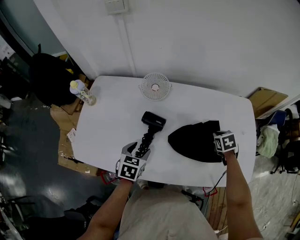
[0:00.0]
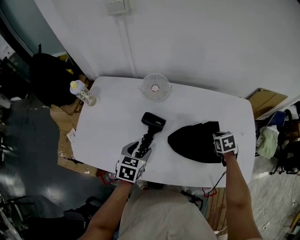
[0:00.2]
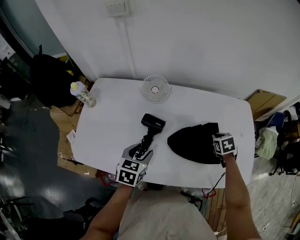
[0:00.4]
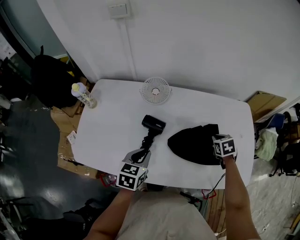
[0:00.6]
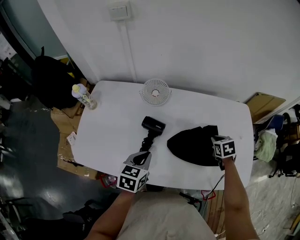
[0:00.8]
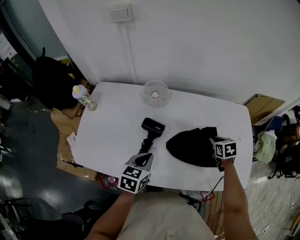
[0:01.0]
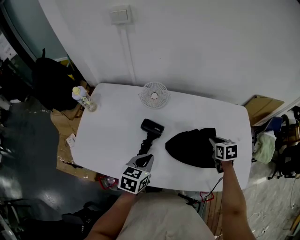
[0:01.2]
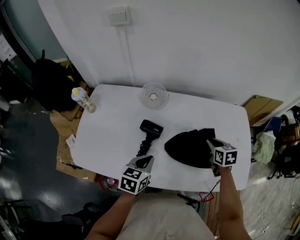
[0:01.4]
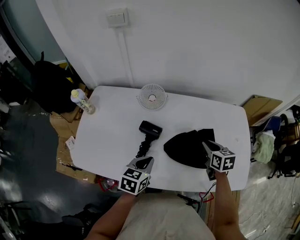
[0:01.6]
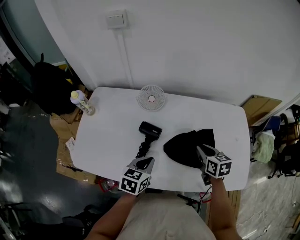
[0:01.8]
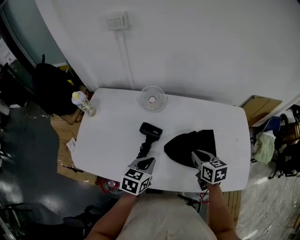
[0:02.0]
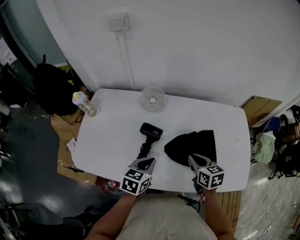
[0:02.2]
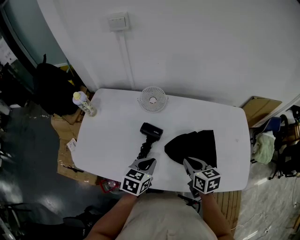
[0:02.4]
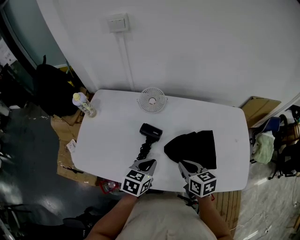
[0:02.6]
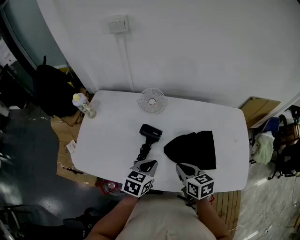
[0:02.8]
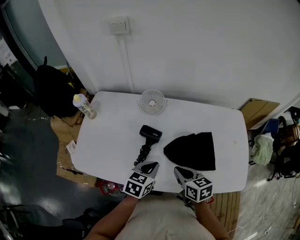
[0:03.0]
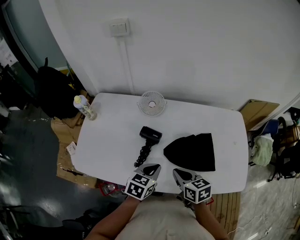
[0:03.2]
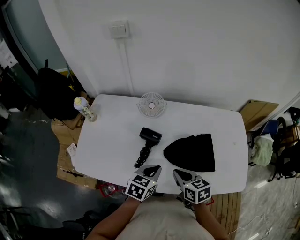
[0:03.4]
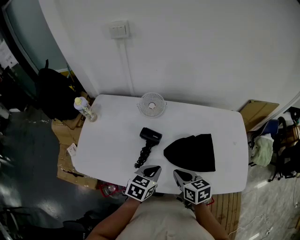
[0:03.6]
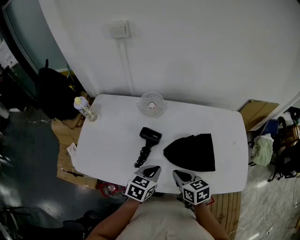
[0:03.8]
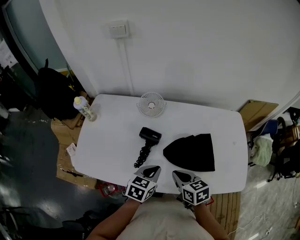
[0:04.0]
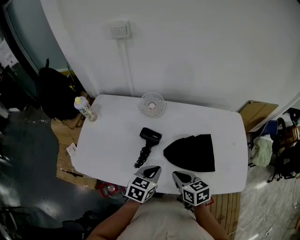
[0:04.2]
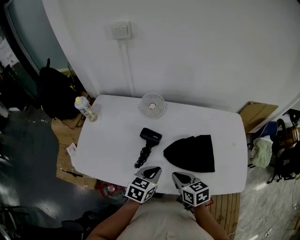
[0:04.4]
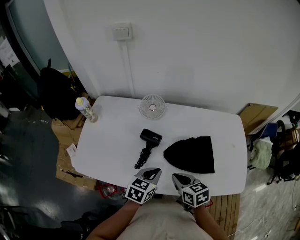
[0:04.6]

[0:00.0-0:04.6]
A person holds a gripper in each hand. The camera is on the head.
0:00.0 to 0:01.6: The left gripper moves upward and to the right, roughly 10 cm, and closes. Meanwhile the right gripper goes about 10 cm upward and to the left, and changes its angle by approximately 30 degrees.
0:01.6 to 0:03.0: The right gripper shifts about 20 cm to the left and backward.
0:03.0 to 0:04.6: The grippers stay close to where they were, moving slightly.

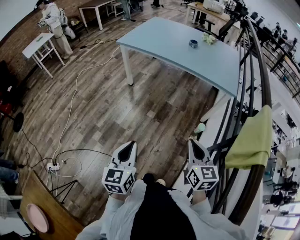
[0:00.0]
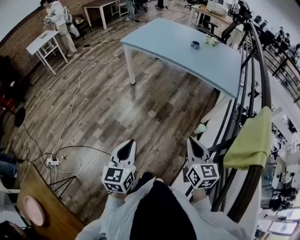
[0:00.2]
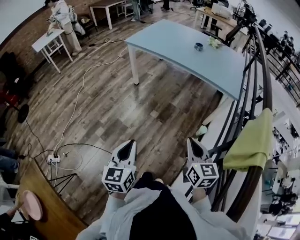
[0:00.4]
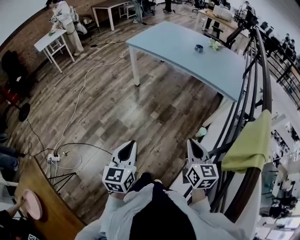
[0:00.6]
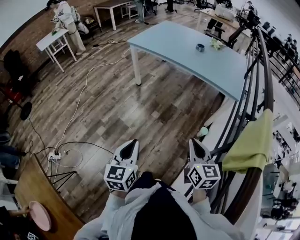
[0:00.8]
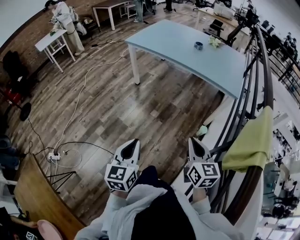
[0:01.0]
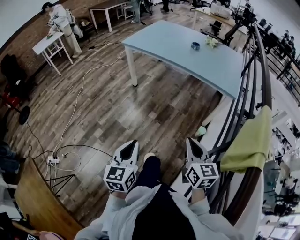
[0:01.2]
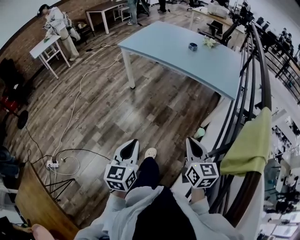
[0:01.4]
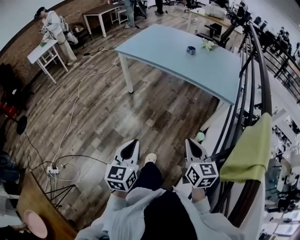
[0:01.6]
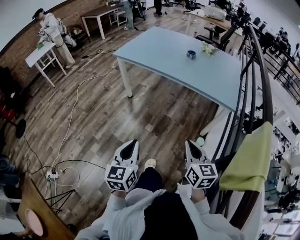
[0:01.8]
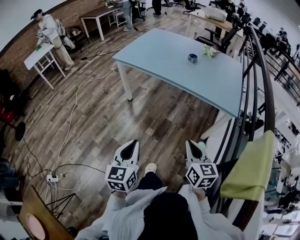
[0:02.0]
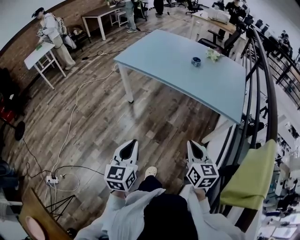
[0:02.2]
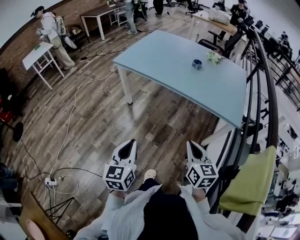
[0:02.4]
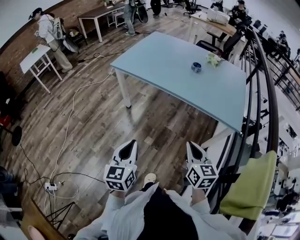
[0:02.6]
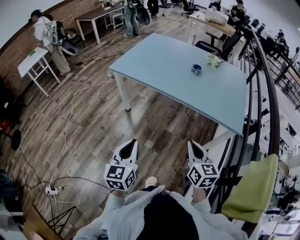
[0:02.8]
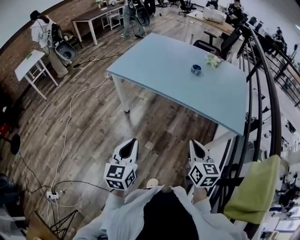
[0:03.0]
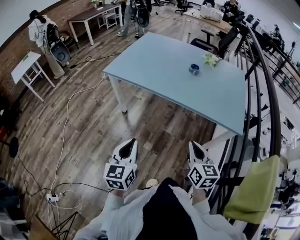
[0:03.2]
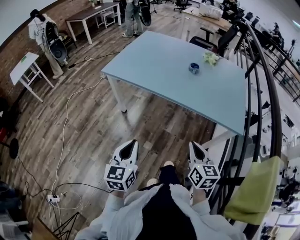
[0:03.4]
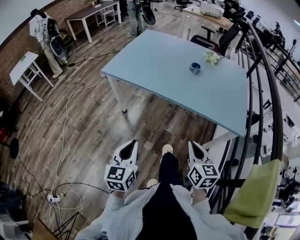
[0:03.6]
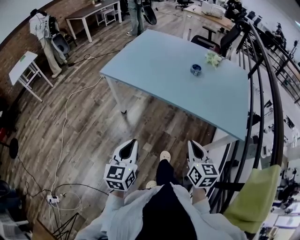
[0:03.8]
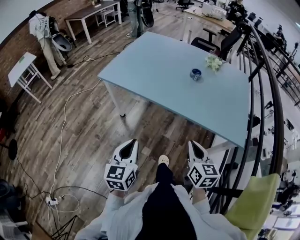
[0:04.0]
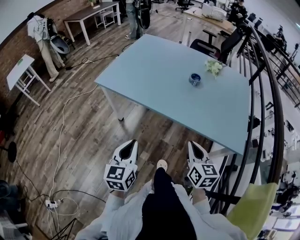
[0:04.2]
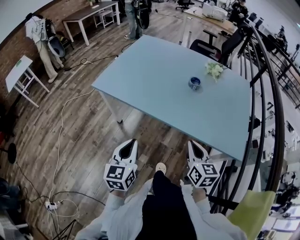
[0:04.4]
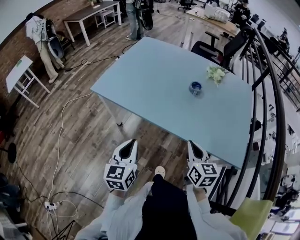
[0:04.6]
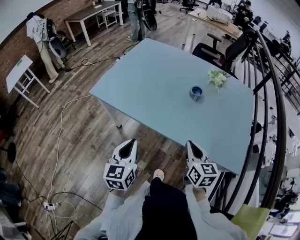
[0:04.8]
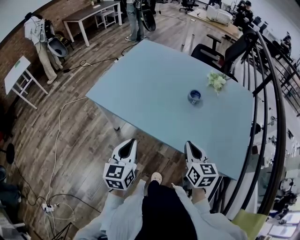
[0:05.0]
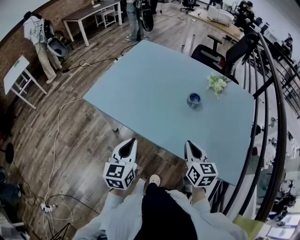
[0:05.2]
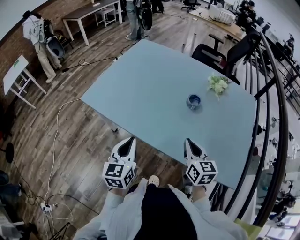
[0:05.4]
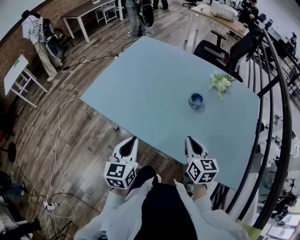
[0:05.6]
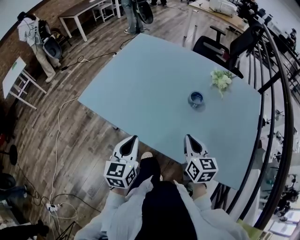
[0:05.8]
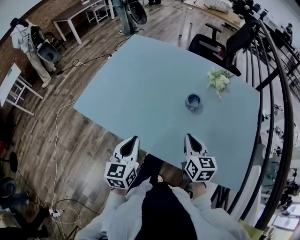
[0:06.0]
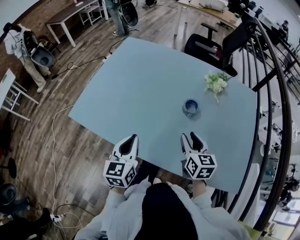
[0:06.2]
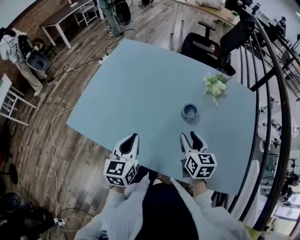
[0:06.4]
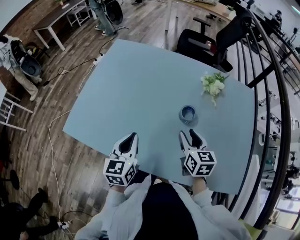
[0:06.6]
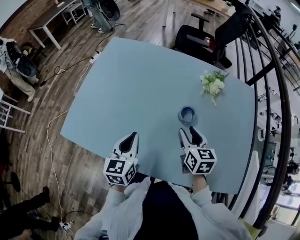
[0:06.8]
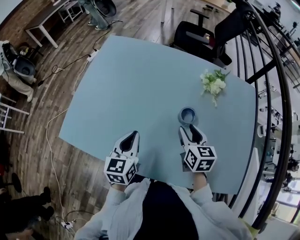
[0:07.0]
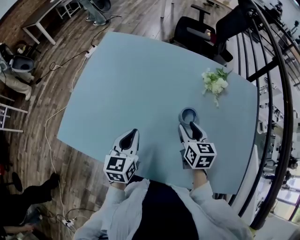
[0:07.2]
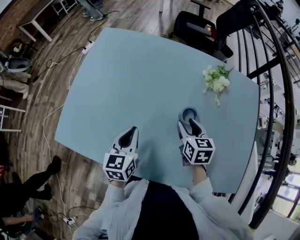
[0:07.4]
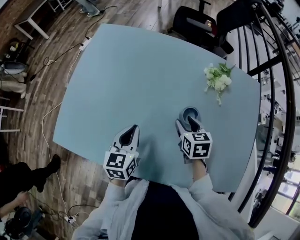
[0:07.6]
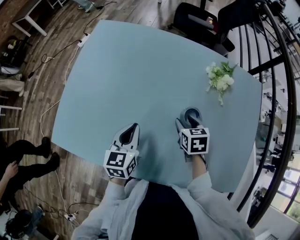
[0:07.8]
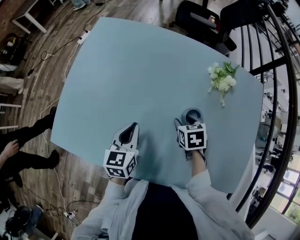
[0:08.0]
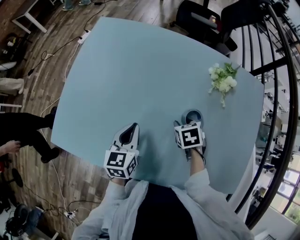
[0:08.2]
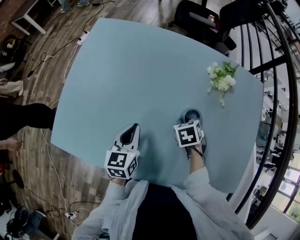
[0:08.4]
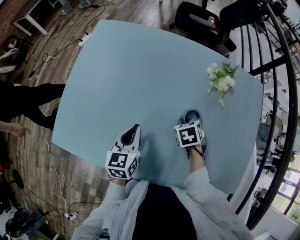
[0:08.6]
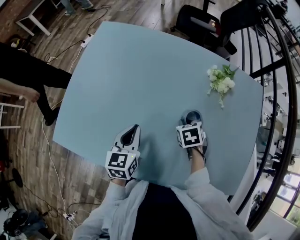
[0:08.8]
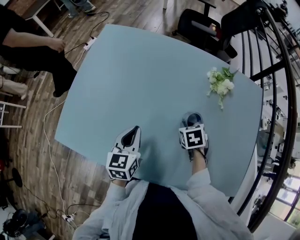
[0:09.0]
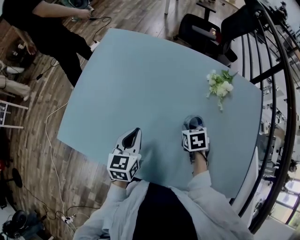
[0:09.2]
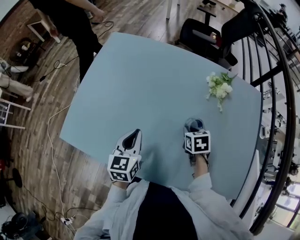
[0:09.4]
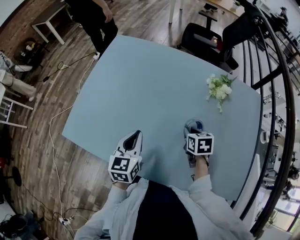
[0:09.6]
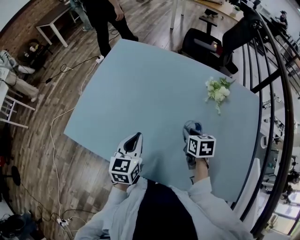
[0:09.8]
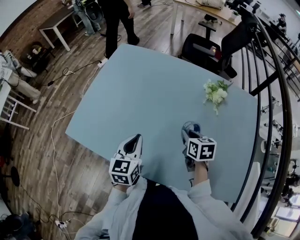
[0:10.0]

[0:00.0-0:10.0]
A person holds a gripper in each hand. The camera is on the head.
0:00.0 to 0:01.4: The left gripper goes about 5 cm to the right.
0:01.4 to 0:02.8: The grippers both shift forward by some 30 cm.
0:02.8 to 0:04.2: The grippers both shift forward by some 15 cm.
0:04.2 to 0:05.8: Both grippers move forward, some 25 cm.
0:05.8 to 0:07.2: Both grippers travel together forward, some 20 cm. The right gripper opens up.
0:07.2 to 0:08.6: The right gripper goes approximately 10 cm downward, angles its fingers downward, by roughly 40 degrees, and closes its fingers, while the left gripper changes place by about 5 cm.
0:08.6 to 0:10.0: The left gripper shifts roughly 10 cm backward and upward. Meanwhile the right gripper goes approximately 10 cm upward and backward, and rotates approximately 30 degrees.

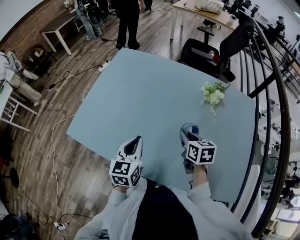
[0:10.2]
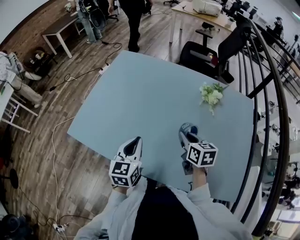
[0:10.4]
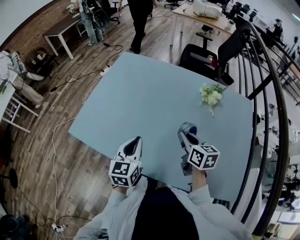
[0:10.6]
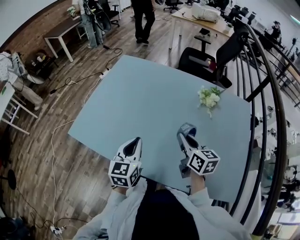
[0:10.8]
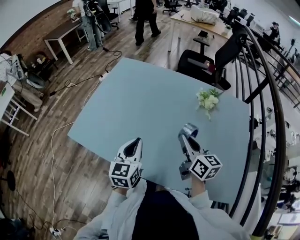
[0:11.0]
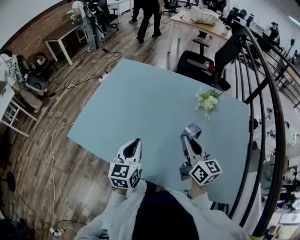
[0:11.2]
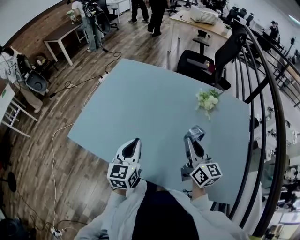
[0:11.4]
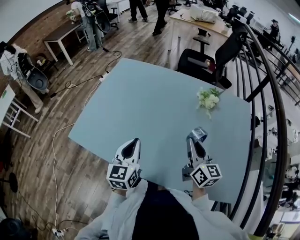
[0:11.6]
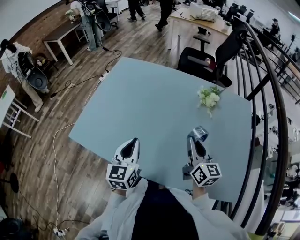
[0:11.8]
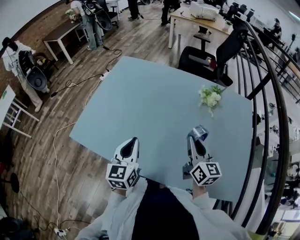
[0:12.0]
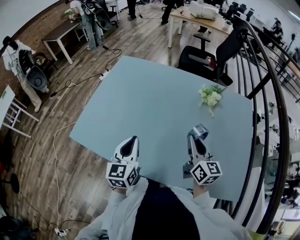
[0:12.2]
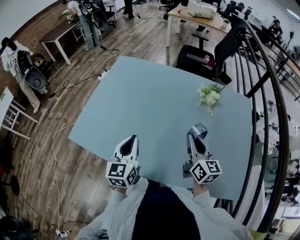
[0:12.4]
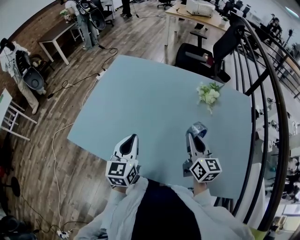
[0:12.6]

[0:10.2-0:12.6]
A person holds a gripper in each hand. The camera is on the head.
0:10.2 to 0:11.4: The right gripper goes about 10 cm upward and backward, and points its fingers approximately 40 degrees further upward.
0:11.4 to 0:12.6: The grippers make only small movements.

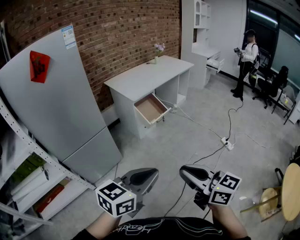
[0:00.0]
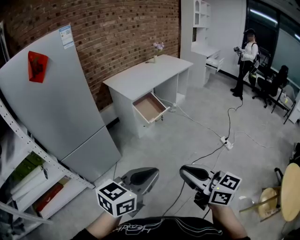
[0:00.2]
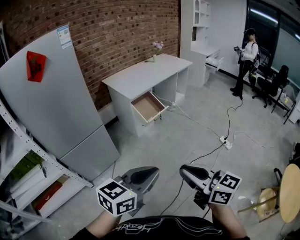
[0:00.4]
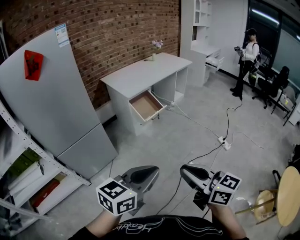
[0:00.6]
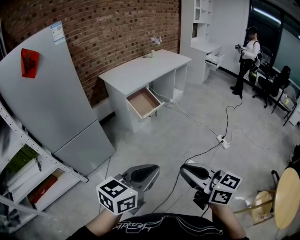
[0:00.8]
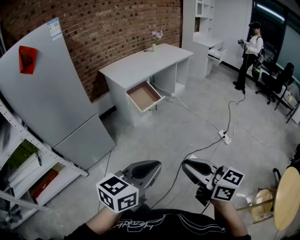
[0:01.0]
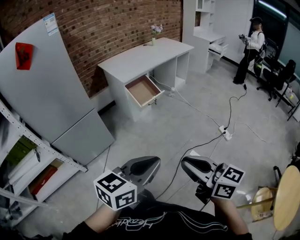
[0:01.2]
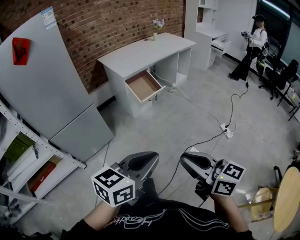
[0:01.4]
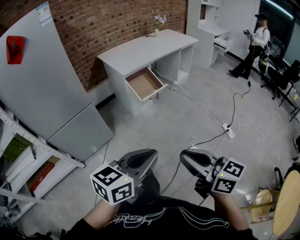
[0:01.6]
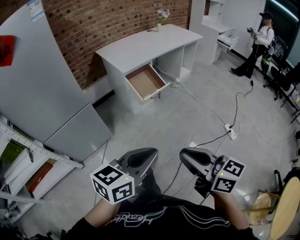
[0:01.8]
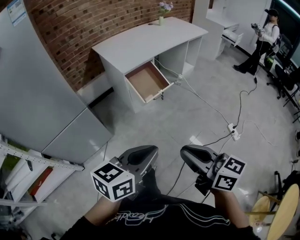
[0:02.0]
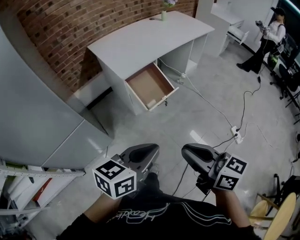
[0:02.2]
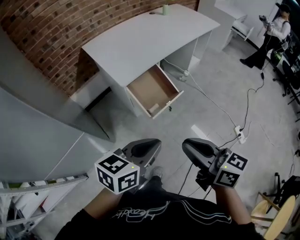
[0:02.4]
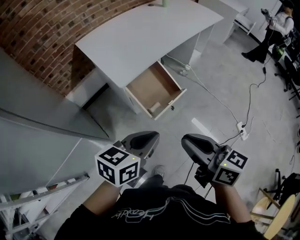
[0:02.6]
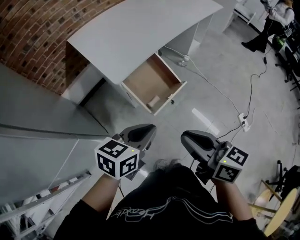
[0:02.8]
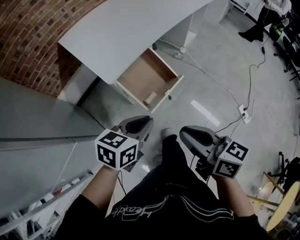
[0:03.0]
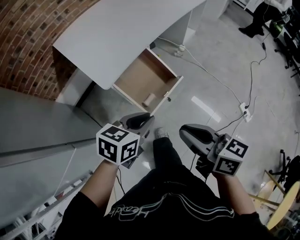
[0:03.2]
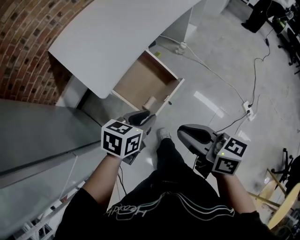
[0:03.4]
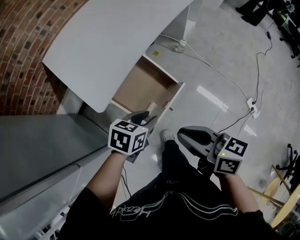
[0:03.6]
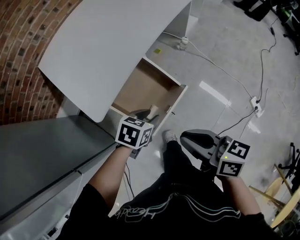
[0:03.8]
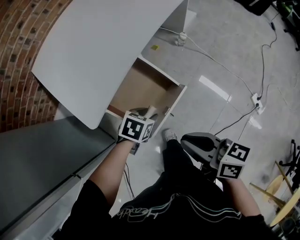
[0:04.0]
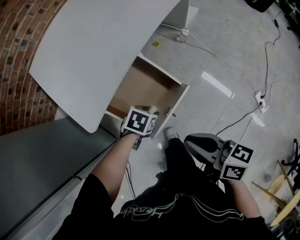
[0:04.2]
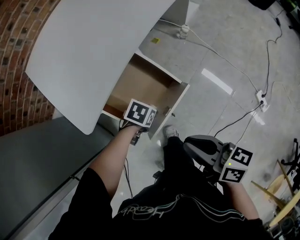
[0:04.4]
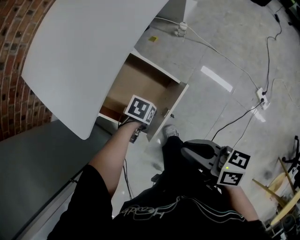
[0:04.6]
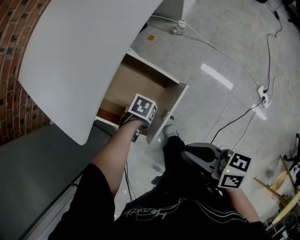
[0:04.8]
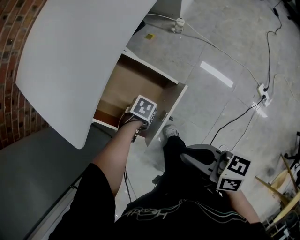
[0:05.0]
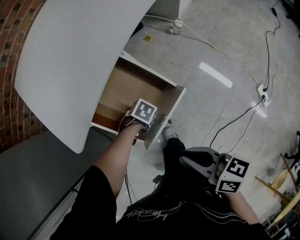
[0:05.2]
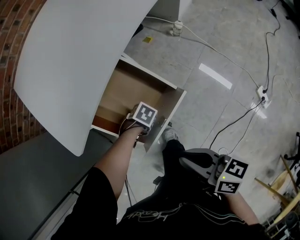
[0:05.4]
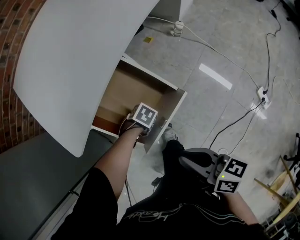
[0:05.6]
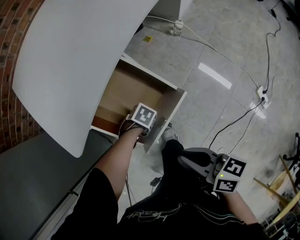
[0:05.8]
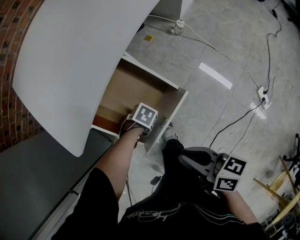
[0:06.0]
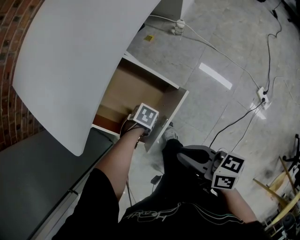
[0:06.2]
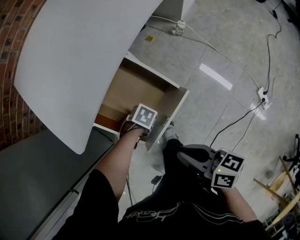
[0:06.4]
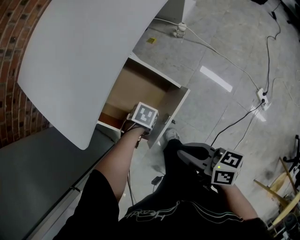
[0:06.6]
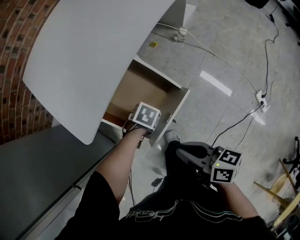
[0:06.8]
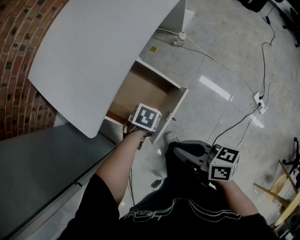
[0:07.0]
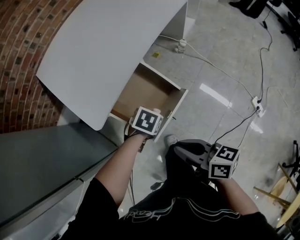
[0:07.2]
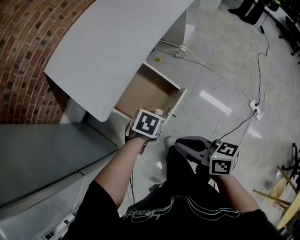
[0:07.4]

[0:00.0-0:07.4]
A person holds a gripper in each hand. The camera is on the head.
0:00.0 to 0:01.4: Both grippers travel together to the right and downward, about 15 cm.
0:01.4 to 0:03.0: The two grippers travel together, forward, approximately 70 cm. The left gripper turns by roughly 20 degrees.
0:03.0 to 0:04.4: The right gripper shifts by some 25 cm. The left gripper moves downward, approximately 35 cm, tips its fingers downward by roughly 40 degrees, and opens up.
0:04.4 to 0:06.0: The grippers both shift downward by some 10 cm.
0:06.0 to 0:07.4: The right gripper heads upward, covering approximately 15 cm. The left gripper shifts some 25 cm upward, and rotates about 30 degrees.
